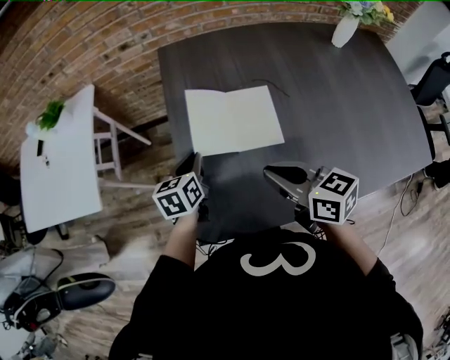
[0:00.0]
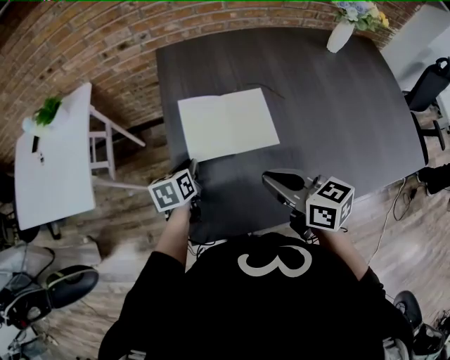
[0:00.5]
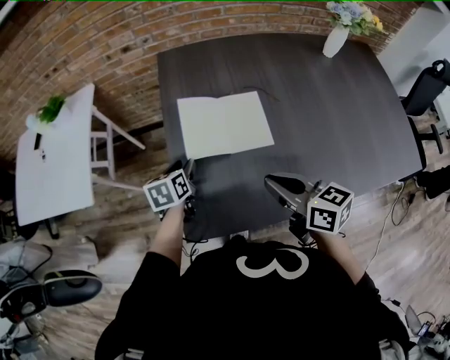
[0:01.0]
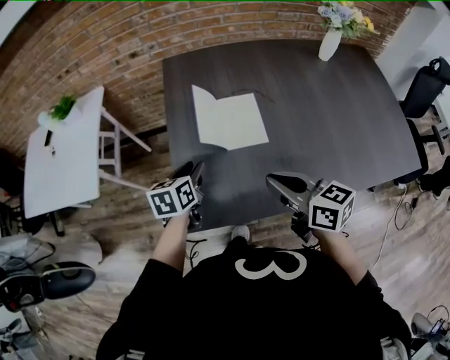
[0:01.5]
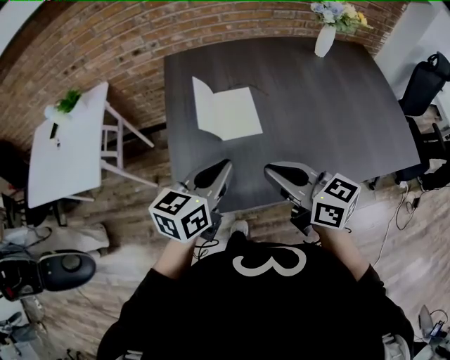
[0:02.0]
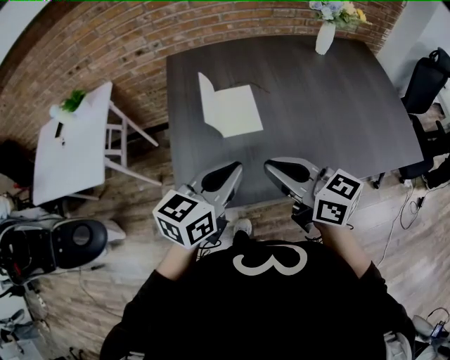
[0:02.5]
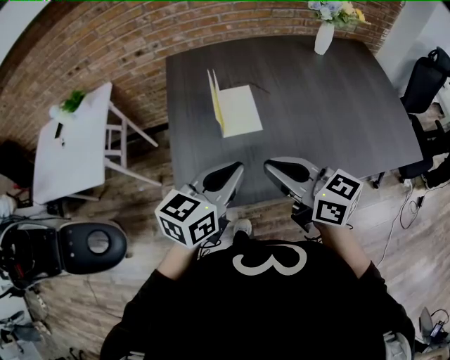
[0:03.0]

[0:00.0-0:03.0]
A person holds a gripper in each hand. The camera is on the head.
0:00.0 to 0:01.5: The grippers both shift backward by approximately 5 cm. The left gripper opens up.
0:01.5 to 0:03.0: The right gripper moves upward, approximately 5 cm; the left gripper travels upward, backward and to the right by some 25 cm, changes its angle by approximately 30 degrees, and closes up.

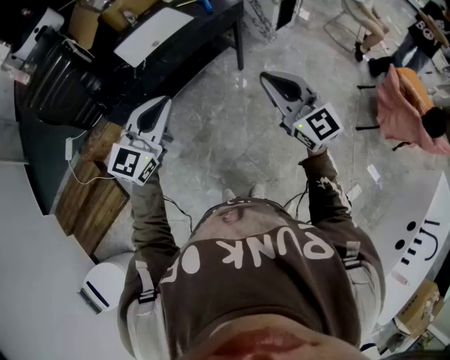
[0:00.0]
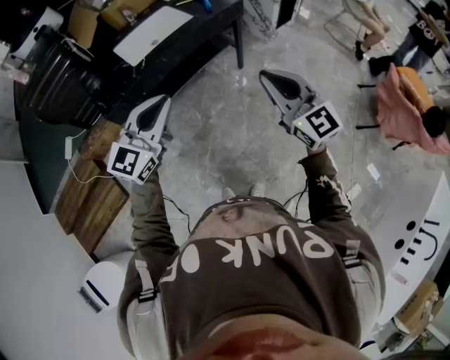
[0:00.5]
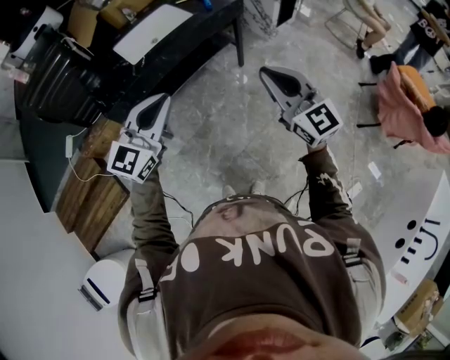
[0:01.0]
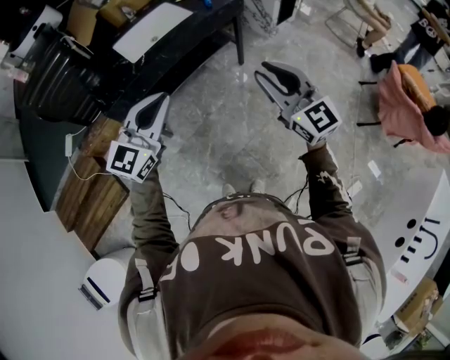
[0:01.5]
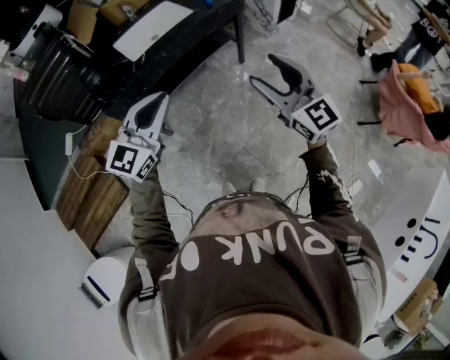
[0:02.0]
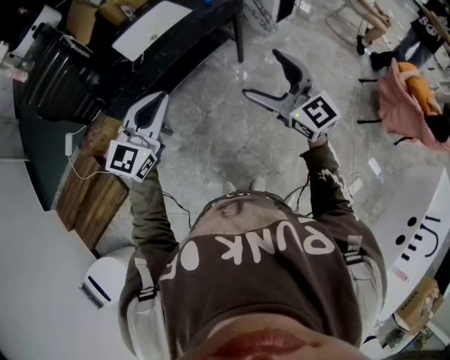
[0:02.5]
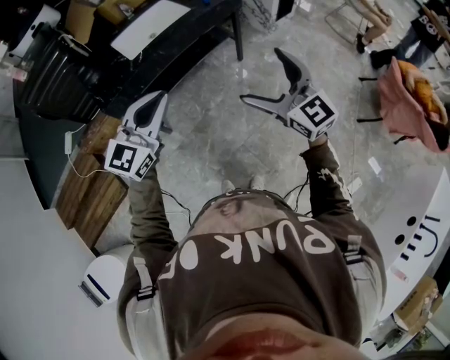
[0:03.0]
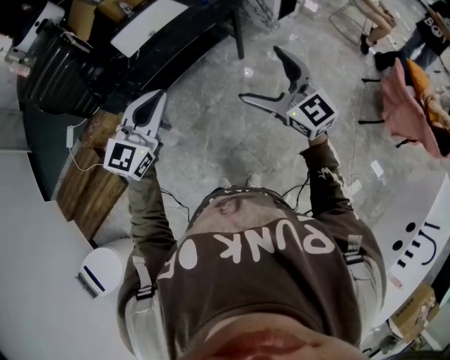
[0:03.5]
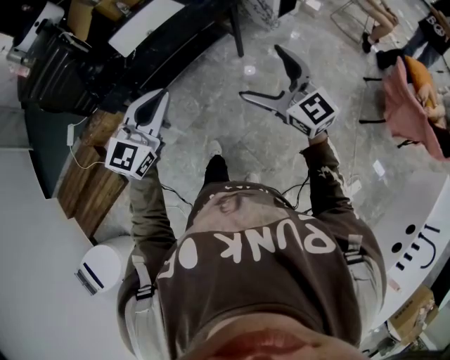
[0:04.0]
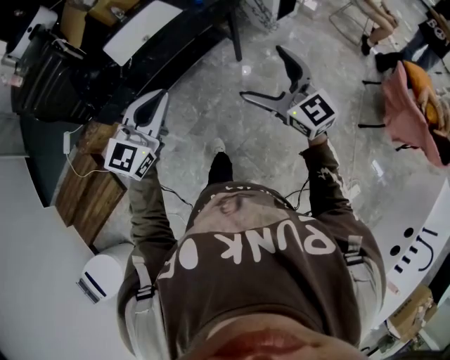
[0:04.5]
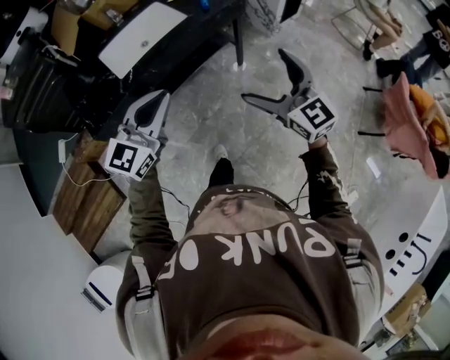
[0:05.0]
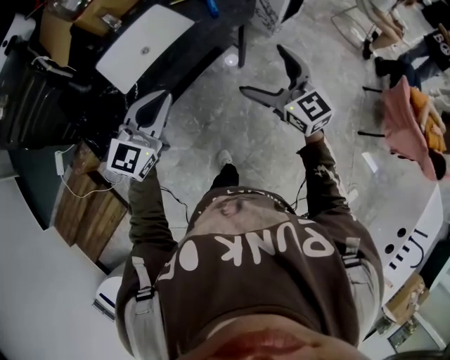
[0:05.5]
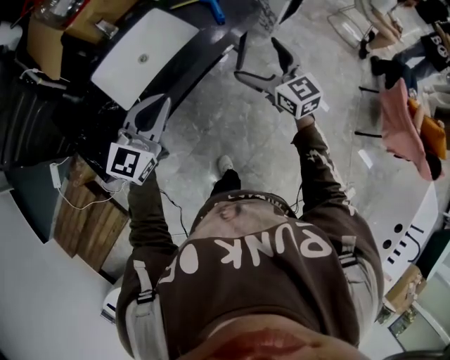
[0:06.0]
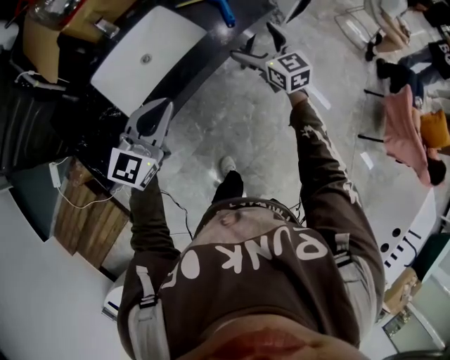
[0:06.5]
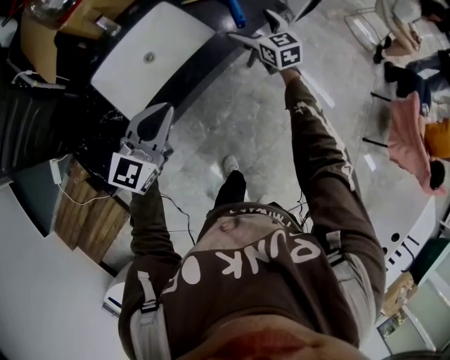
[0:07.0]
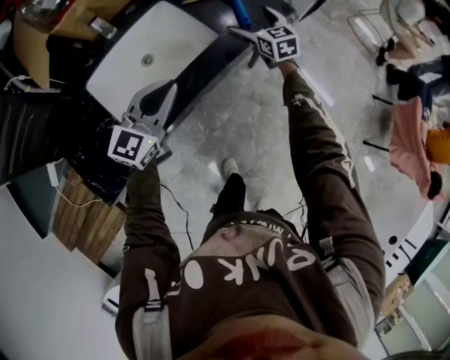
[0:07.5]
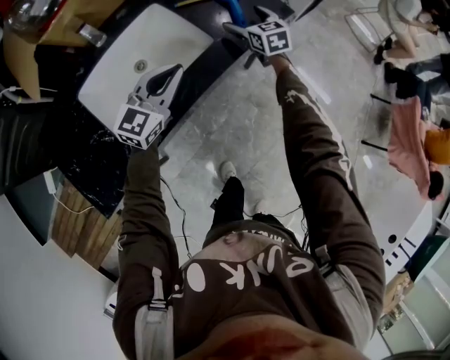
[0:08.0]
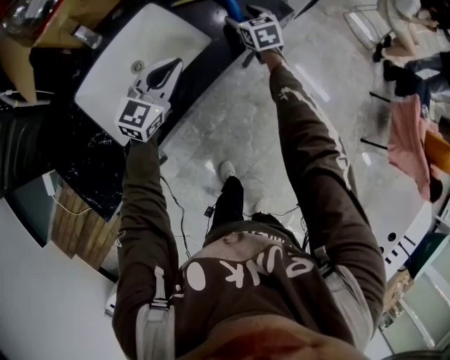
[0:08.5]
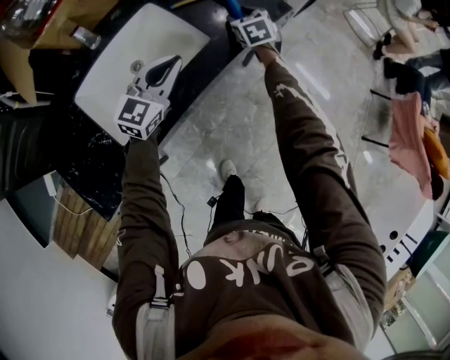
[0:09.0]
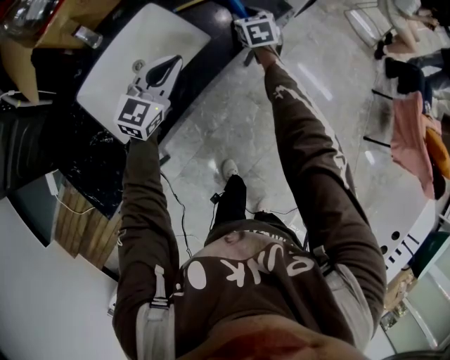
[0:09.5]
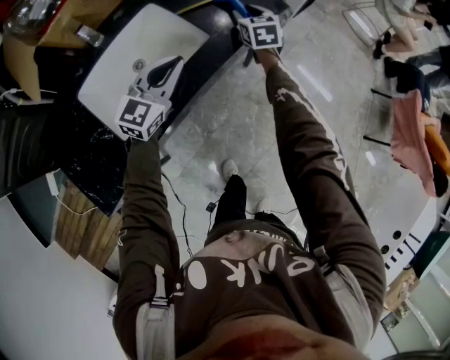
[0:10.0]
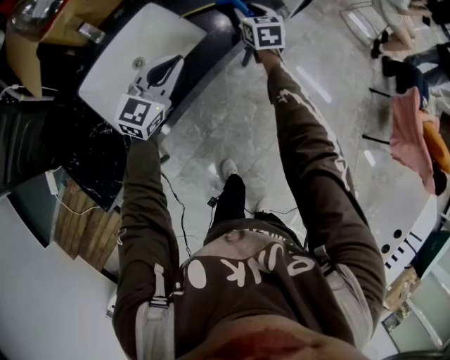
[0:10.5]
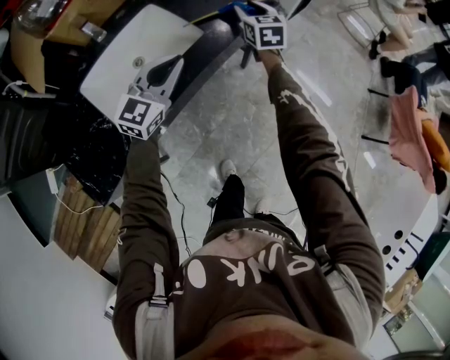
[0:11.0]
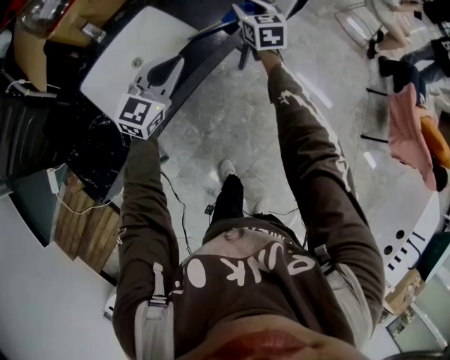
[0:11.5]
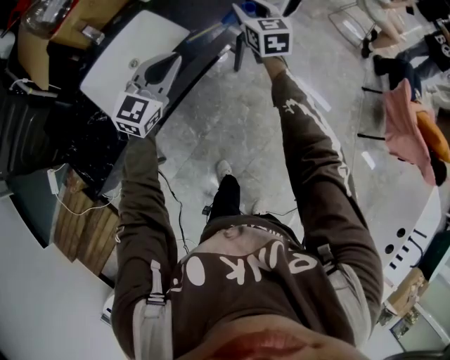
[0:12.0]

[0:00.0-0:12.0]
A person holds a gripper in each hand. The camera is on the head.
0:00.0 to 0:02.0: The right gripper opens its fingers.
0:02.0 to 0:04.0: The grippers both shift to the right by some 10 cm. The right gripper opens its fingers.
0:04.0 to 0:06.0: The two grippers travel together, forward, some 40 cm.
0:06.0 to 0:08.0: The grippers both shift forward and downward by roughly 30 cm.
0:08.0 to 0:10.0: The right gripper closes its fingers.
0:10.0 to 0:12.0: The right gripper goes approximately 20 cm upward, backward and to the right, while the left gripper shifts roughly 15 cm to the right, backward and upward.

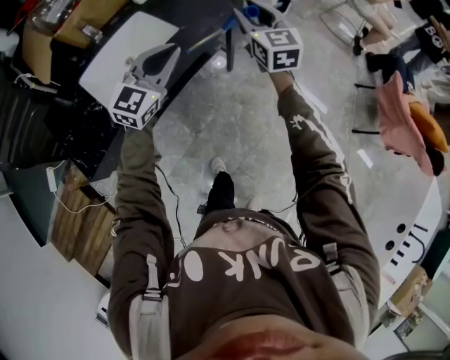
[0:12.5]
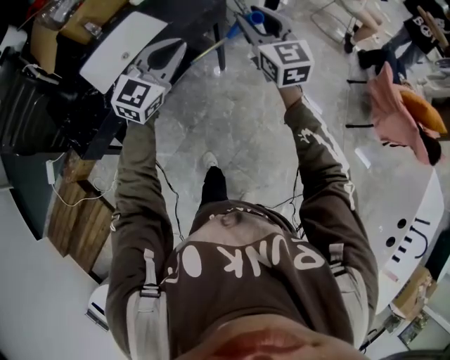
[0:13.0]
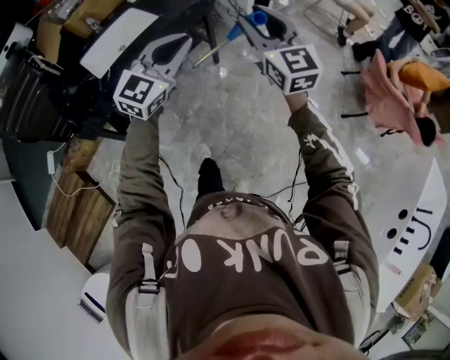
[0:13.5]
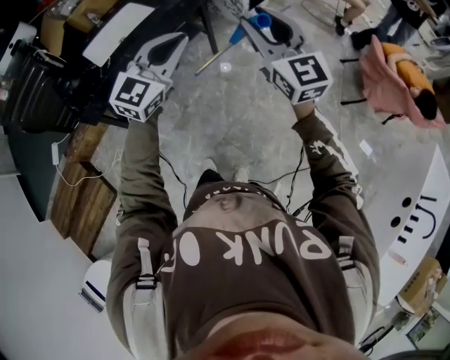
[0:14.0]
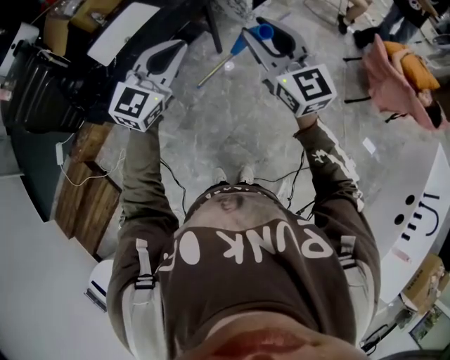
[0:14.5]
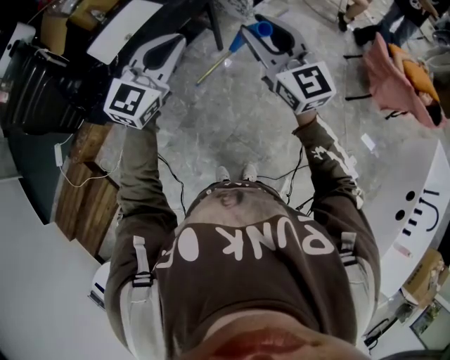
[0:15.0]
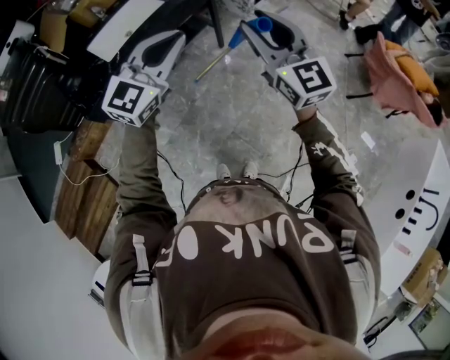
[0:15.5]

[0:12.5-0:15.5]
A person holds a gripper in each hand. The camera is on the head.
0:12.5 to 0:14.0: Both grippers travel together backward and to the right, about 40 cm.
0:14.0 to 0:15.5: The grippers both shift to the left by approximately 10 cm.

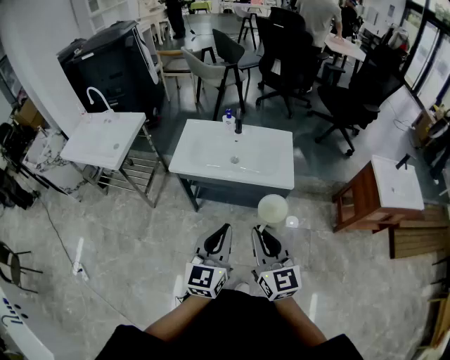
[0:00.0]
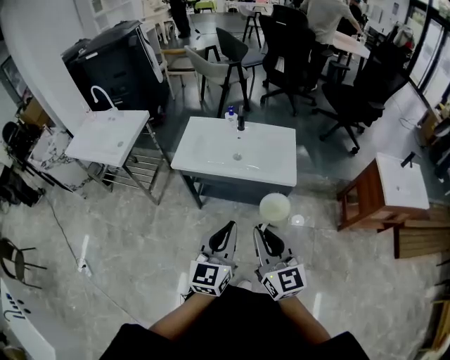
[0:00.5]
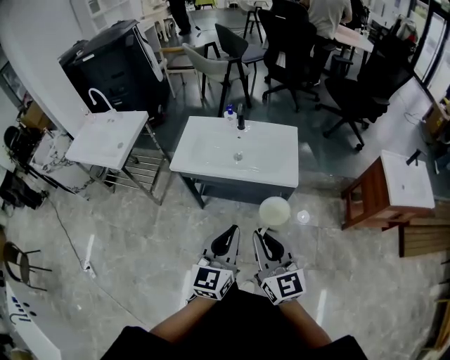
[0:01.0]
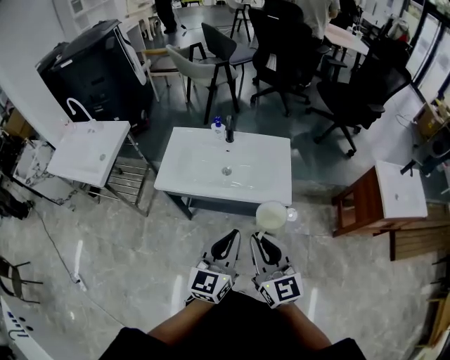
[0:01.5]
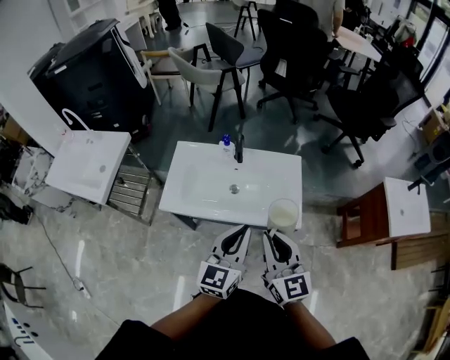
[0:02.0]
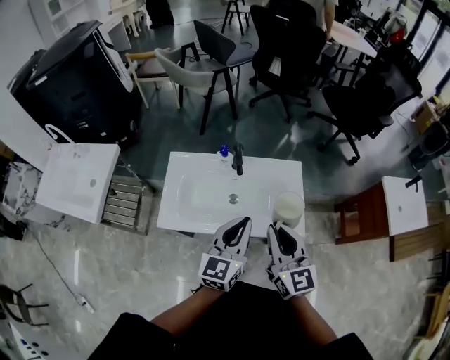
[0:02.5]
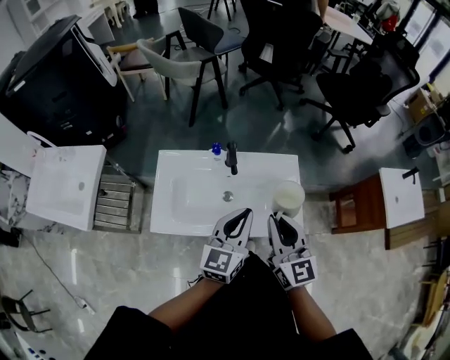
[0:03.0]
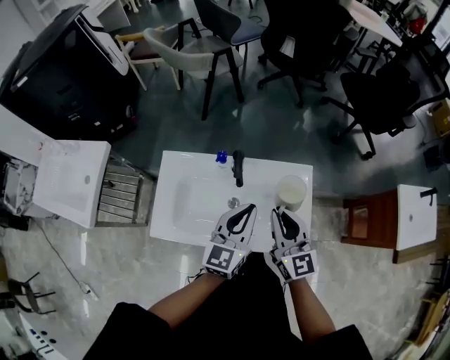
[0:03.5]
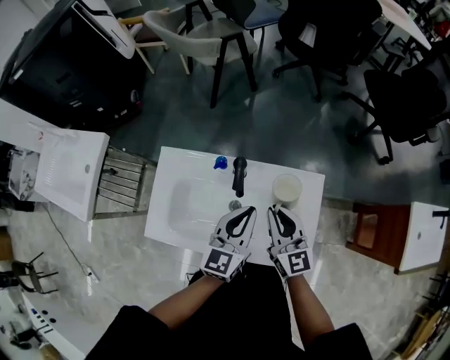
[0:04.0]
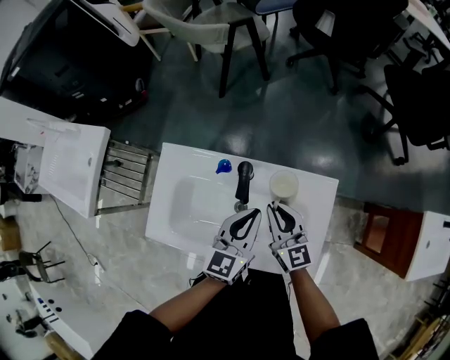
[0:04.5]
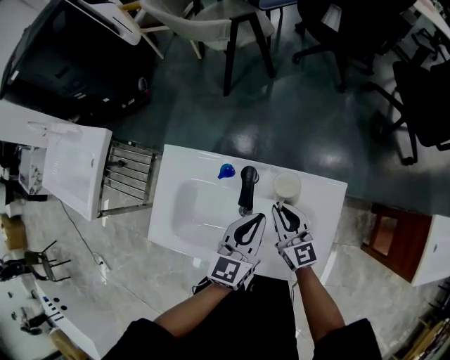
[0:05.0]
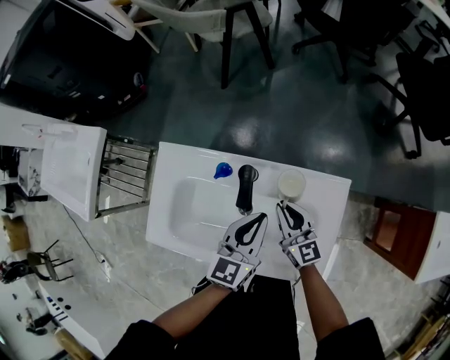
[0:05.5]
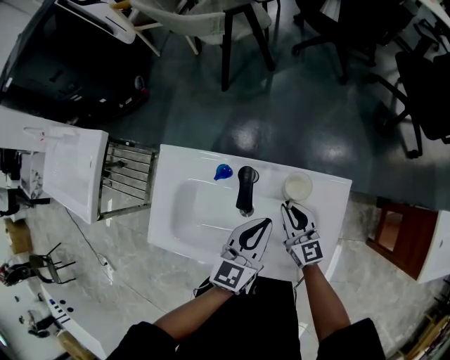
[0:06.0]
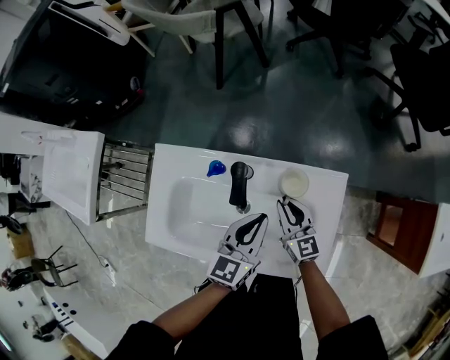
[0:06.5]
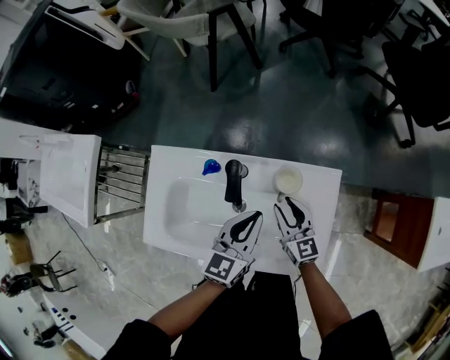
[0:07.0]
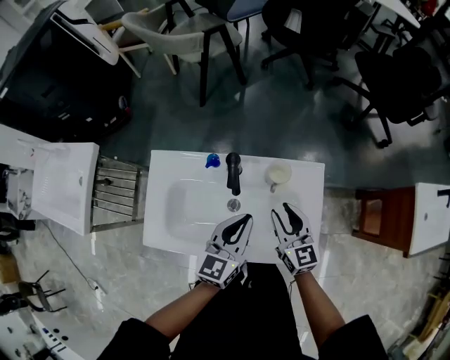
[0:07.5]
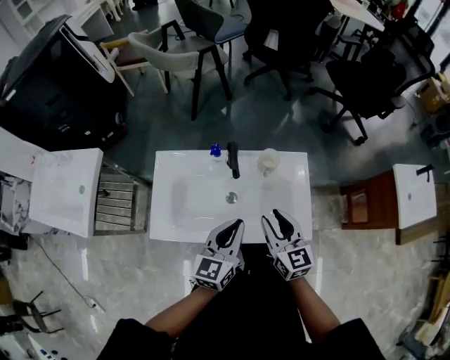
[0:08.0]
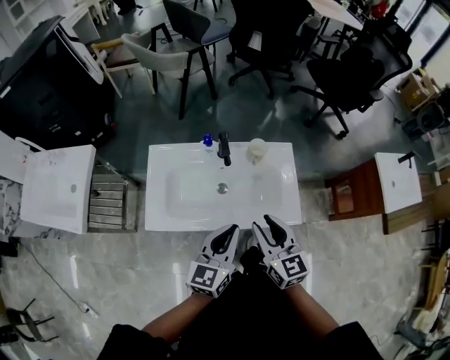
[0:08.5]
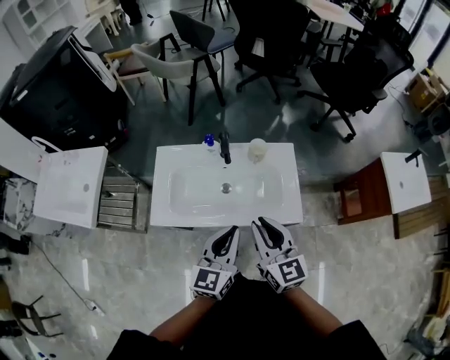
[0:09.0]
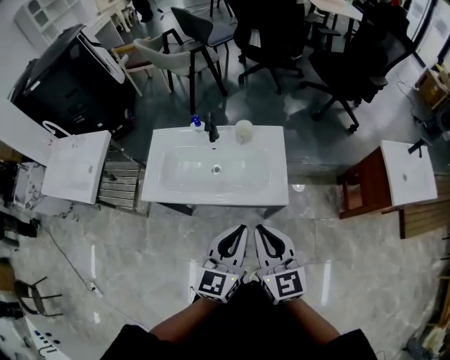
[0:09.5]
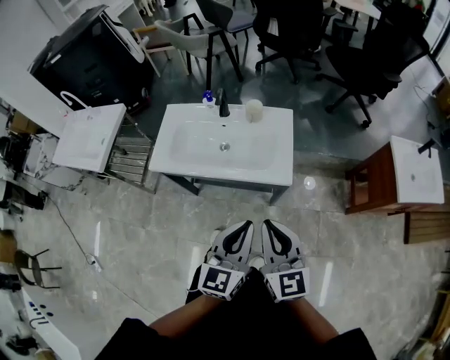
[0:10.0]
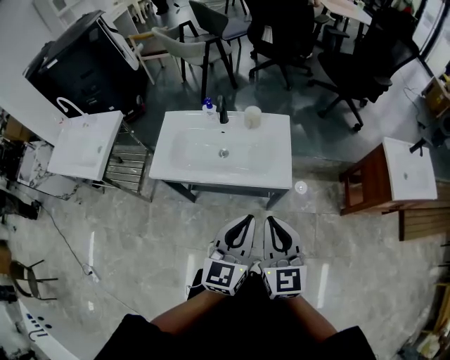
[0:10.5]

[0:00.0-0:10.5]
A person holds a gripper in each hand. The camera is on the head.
0:00.0 to 0:02.0: The grippers both shift forward by roughly 25 cm.
0:02.0 to 0:04.0: The grippers both shift forward and downward by some 40 cm.
0:04.0 to 0:06.5: The right gripper shifts roughly 20 cm downward. The left gripper shifts some 10 cm downward.
0:06.5 to 0:08.5: Both grippers travel together backward and upward, some 35 cm.
0:08.5 to 0:10.5: The grippers both shift backward and to the right by about 25 cm. The right gripper closes its fingers.
